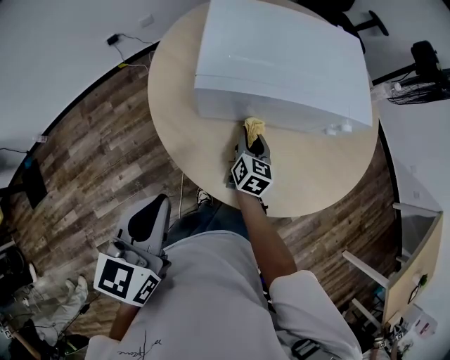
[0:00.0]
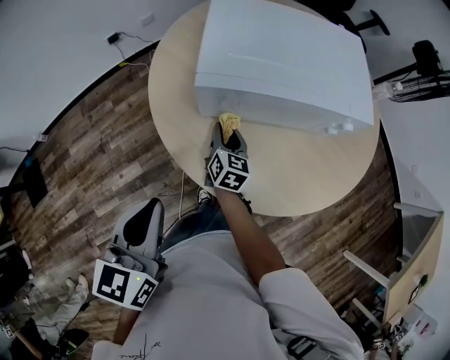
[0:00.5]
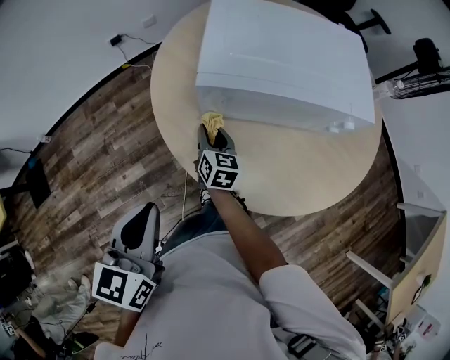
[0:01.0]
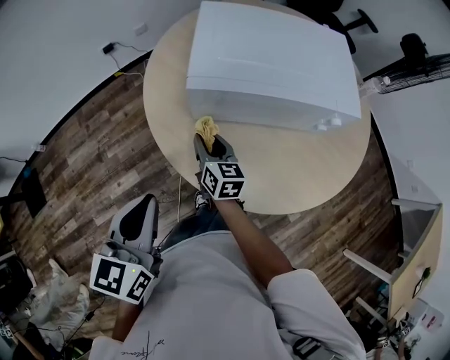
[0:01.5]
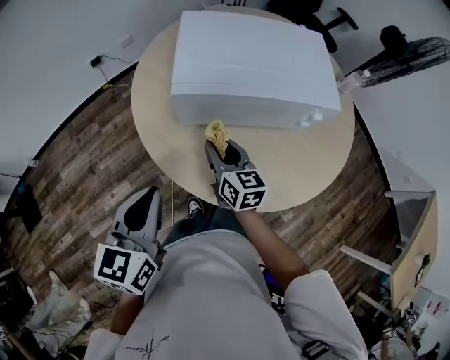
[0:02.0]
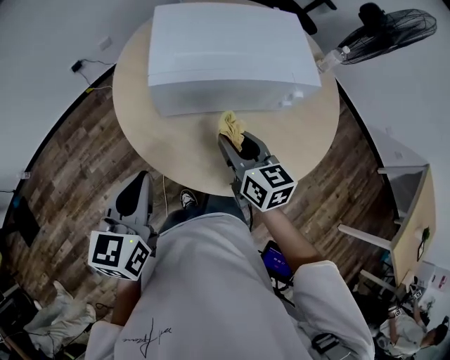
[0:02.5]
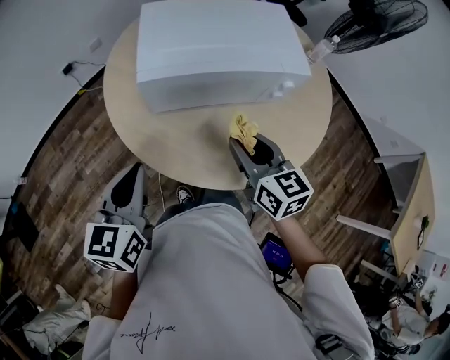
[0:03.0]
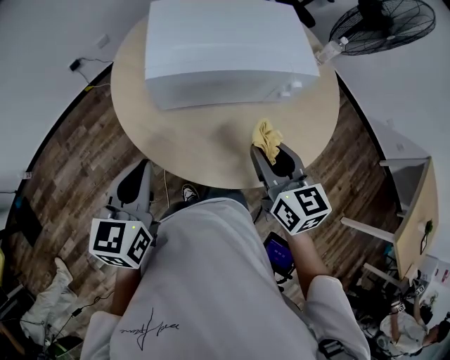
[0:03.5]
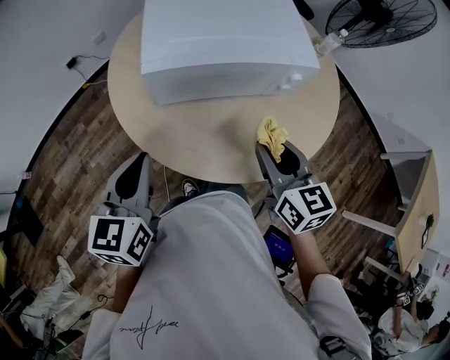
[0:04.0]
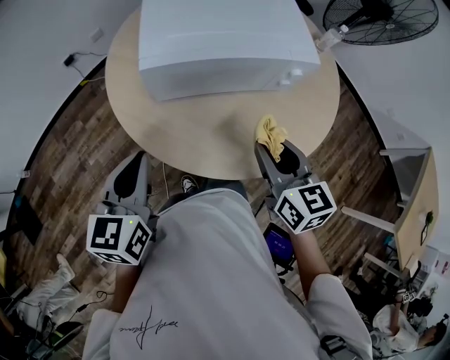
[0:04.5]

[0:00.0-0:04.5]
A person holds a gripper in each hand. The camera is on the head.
0:00.0 to 0:02.0: The right gripper travels upward, backward and to the left by approximately 15 cm, and changes its angle by roughly 20 degrees.
0:02.0 to 0:04.5: The right gripper travels to the right, backward and upward by approximately 20 cm.

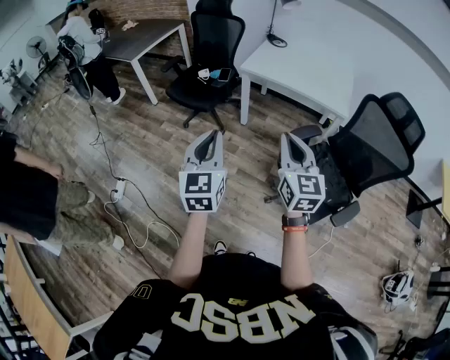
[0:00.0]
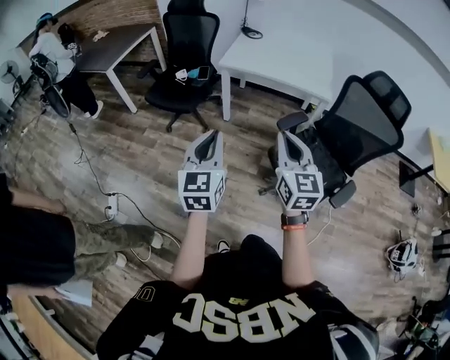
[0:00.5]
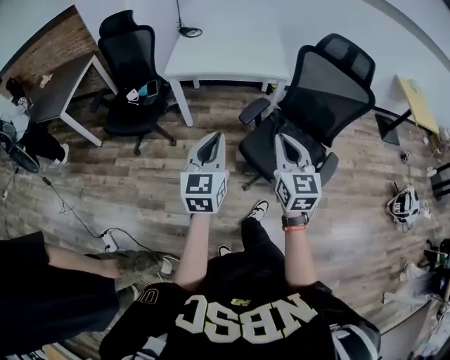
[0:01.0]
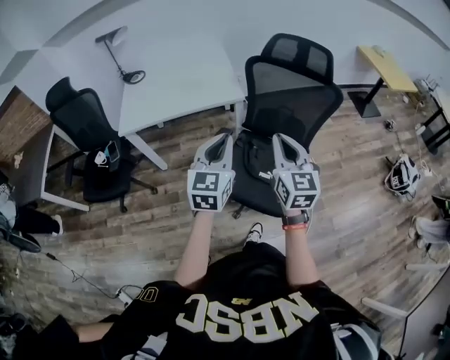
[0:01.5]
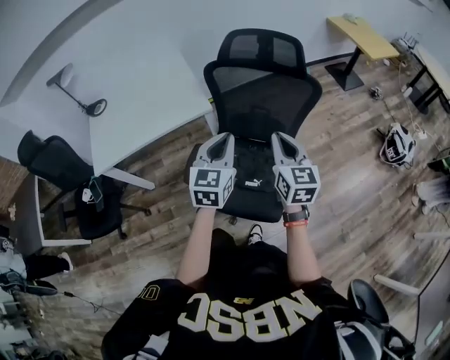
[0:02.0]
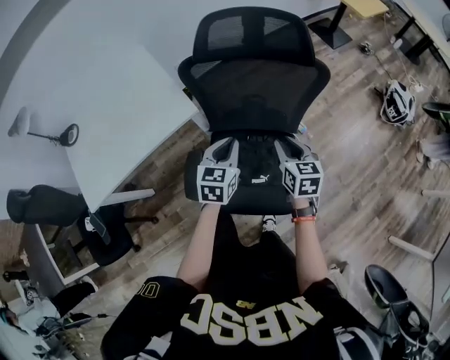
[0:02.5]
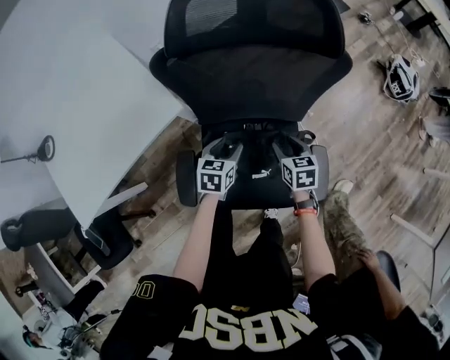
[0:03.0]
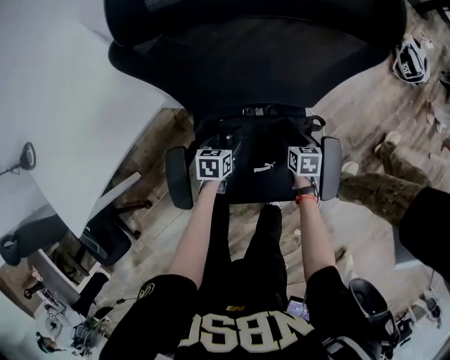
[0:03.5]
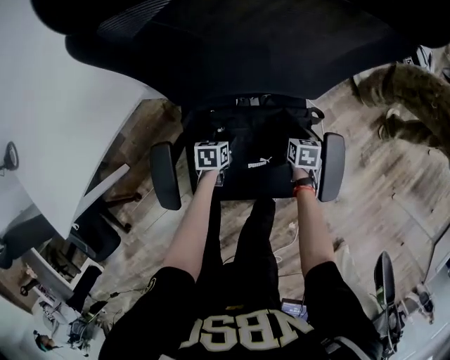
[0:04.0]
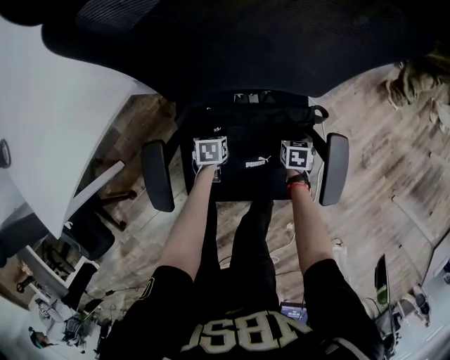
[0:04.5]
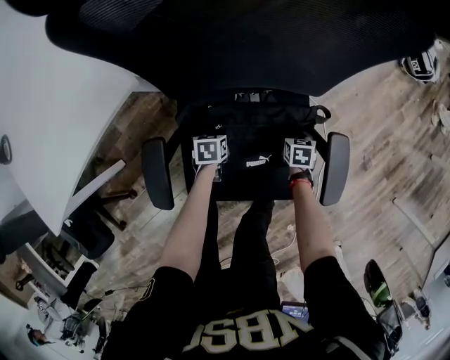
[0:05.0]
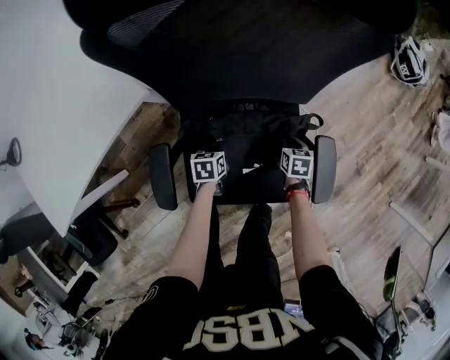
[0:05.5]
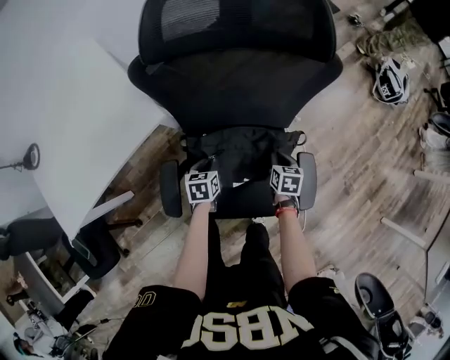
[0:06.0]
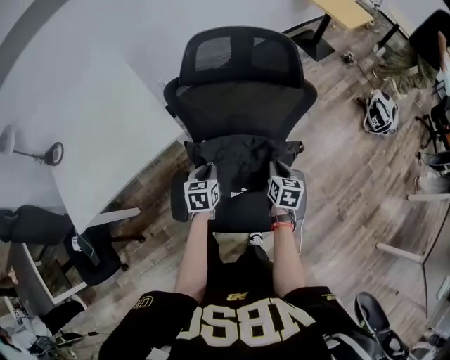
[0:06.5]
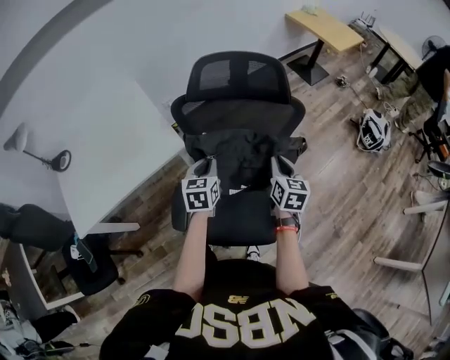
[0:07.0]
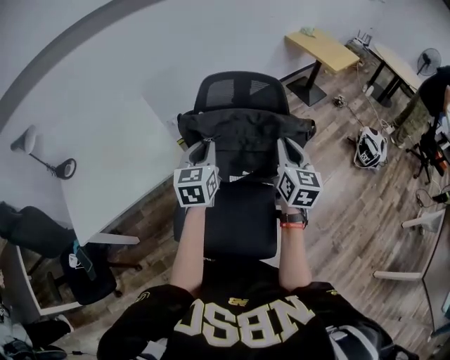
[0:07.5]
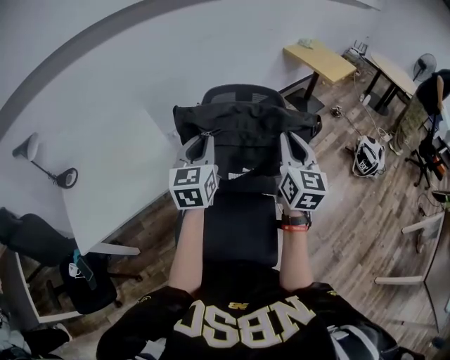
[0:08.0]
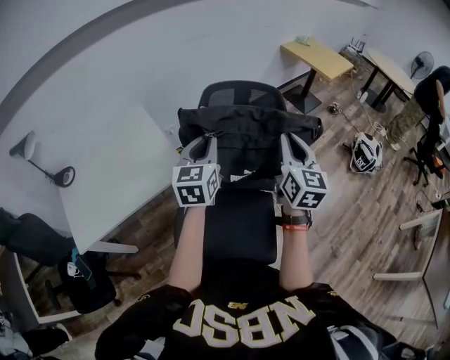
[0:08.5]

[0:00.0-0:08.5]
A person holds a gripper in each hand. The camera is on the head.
0:00.0 to 0:02.0: The two grippers travel together, some 50 cm. The right gripper changes its angle by about 50 degrees. Meanwhile the left gripper changes its angle by about 60 degrees.
0:02.0 to 0:04.0: The two grippers go about 60 cm downward. The right gripper angles its fingers downward, by about 60 degrees, and opens up, while the left gripper angles its fingers downward, by roughly 50 degrees, and opens.
0:04.0 to 0:06.5: The grippers both shift upward by roughly 35 cm. The right gripper changes its angle by about 30 degrees, and closes its fingers; the left gripper rotates about 30 degrees, and closes up.
0:06.5 to 0:08.5: The two grippers go some 35 cm upward. The right gripper points its fingers approximately 40 degrees further upward. Meanwhile the left gripper angles its fingers upward, by about 30 degrees.

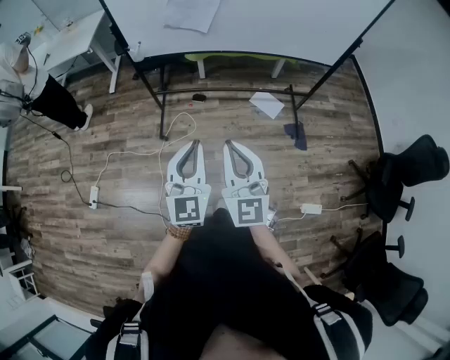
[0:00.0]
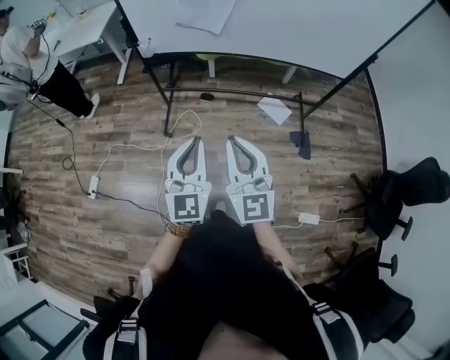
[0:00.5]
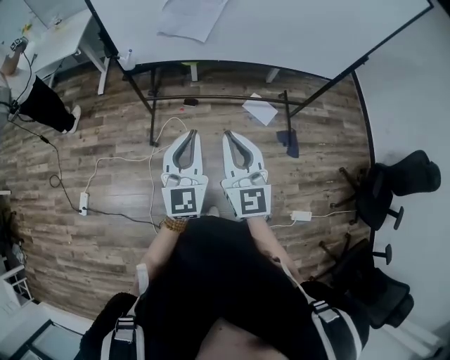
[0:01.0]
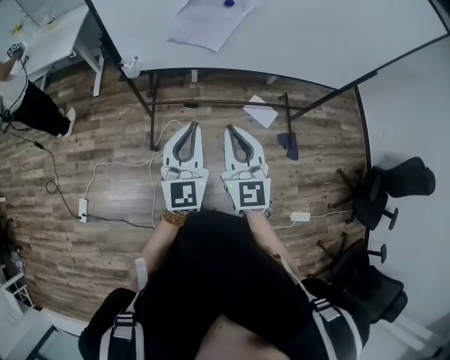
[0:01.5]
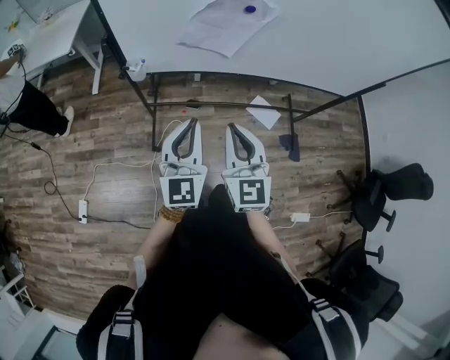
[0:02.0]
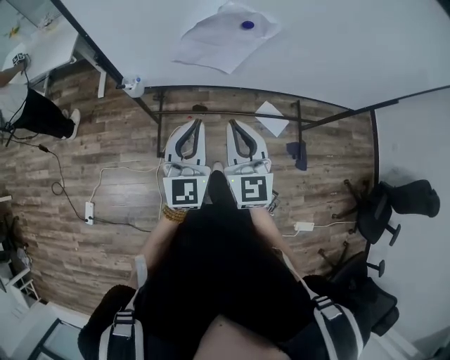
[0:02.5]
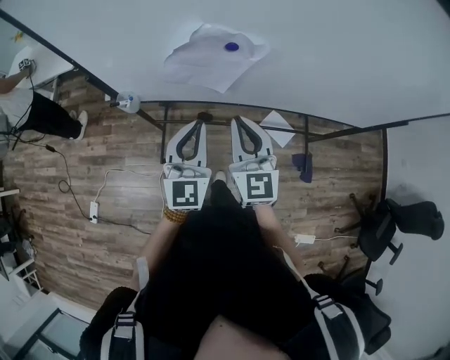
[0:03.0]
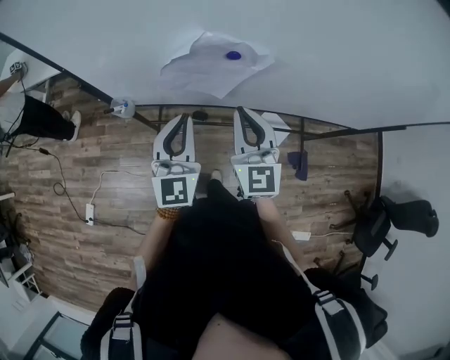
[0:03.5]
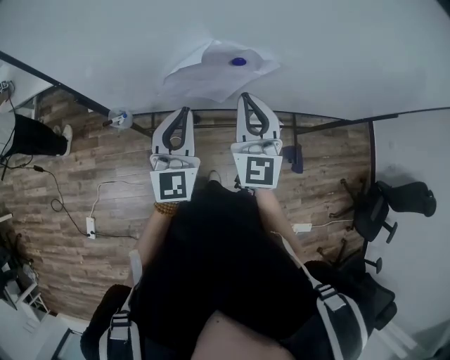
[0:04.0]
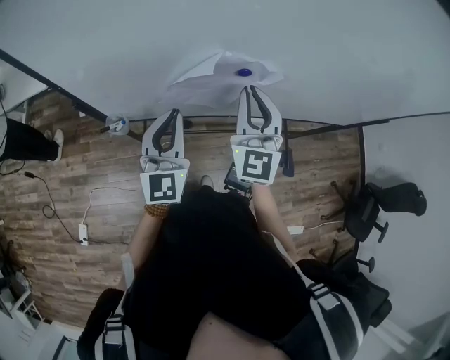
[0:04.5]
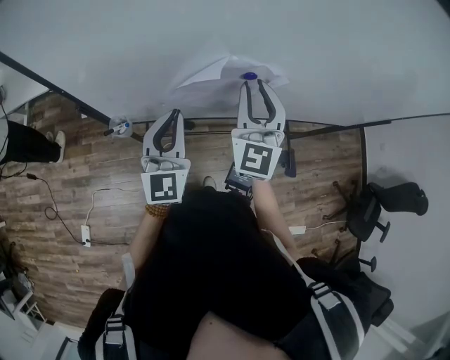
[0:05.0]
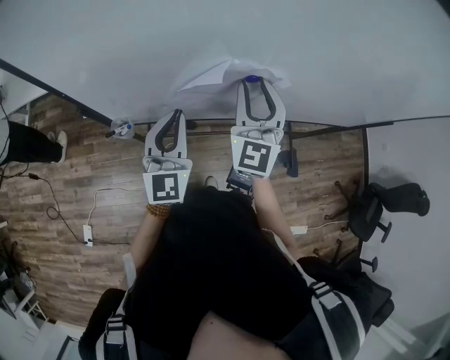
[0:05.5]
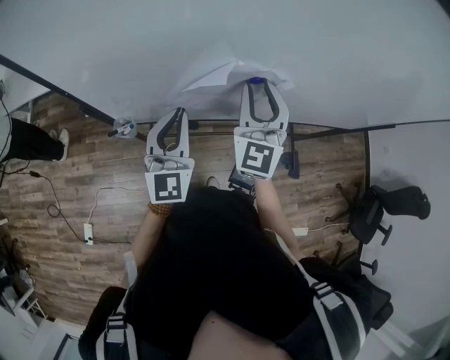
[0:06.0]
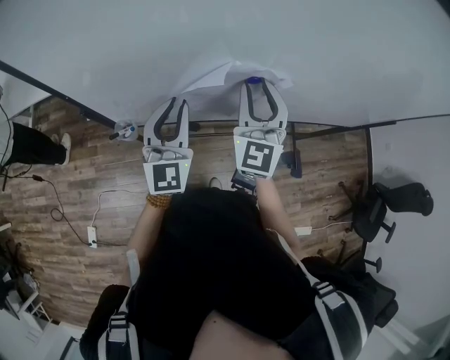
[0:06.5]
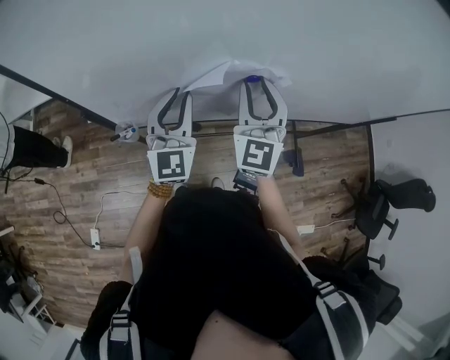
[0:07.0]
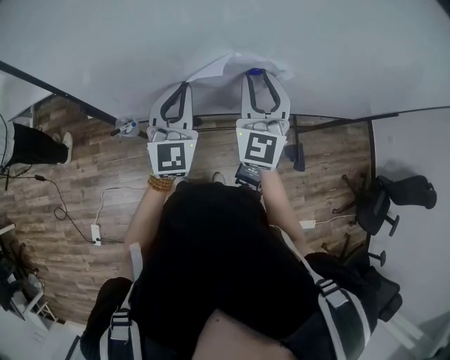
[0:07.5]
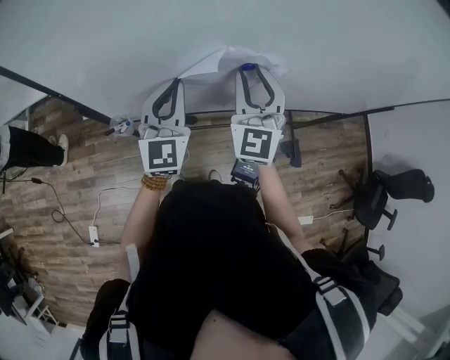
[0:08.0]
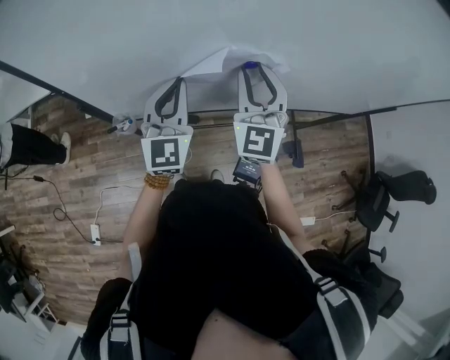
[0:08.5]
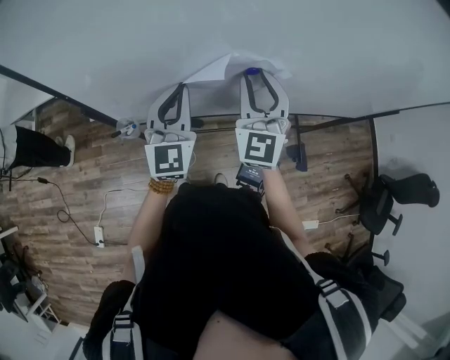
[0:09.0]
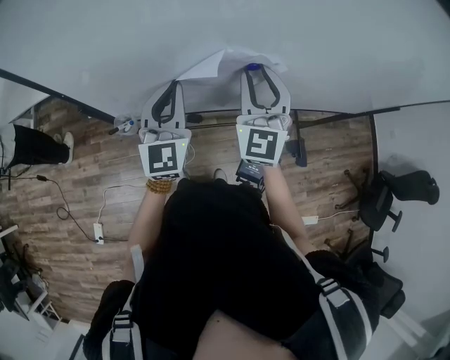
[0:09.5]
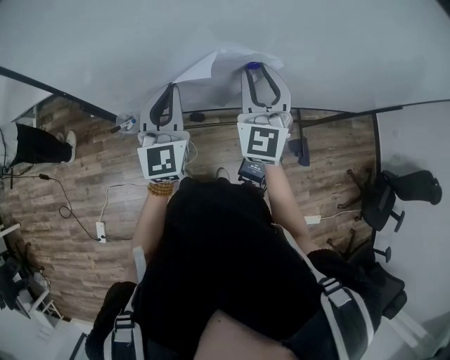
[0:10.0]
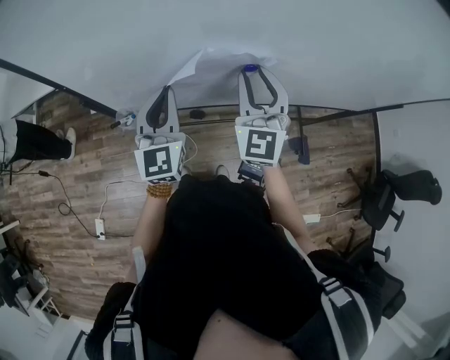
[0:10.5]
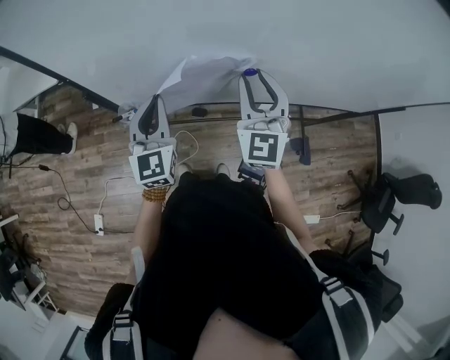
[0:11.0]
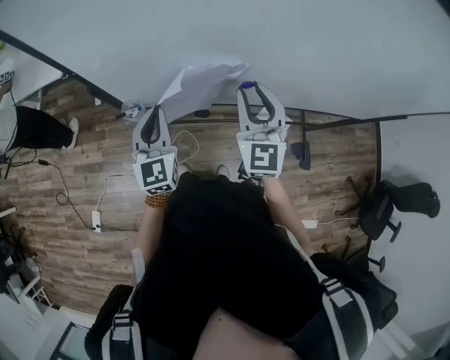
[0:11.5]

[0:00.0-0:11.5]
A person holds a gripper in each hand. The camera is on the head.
0:00.0 to 0:02.0: Both grippers travel together forward, approximately 30 cm.
0:02.0 to 0:04.0: Both grippers move forward, roughly 25 cm.
0:04.0 to 0:06.0: The left gripper changes place by roughly 5 cm, while the right gripper heads forward, covering approximately 5 cm, and opens its fingers.
0:06.0 to 0:09.5: The grippers make only small movements.
0:09.5 to 0:11.5: The left gripper travels to the left, downward and backward by about 10 cm, while the right gripper changes place by approximately 5 cm.

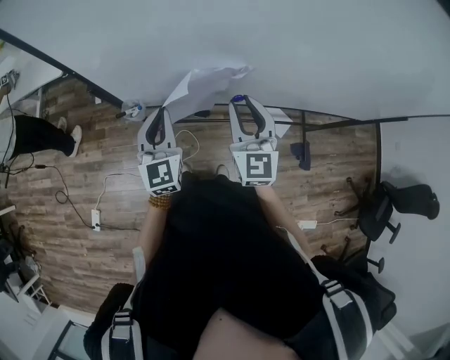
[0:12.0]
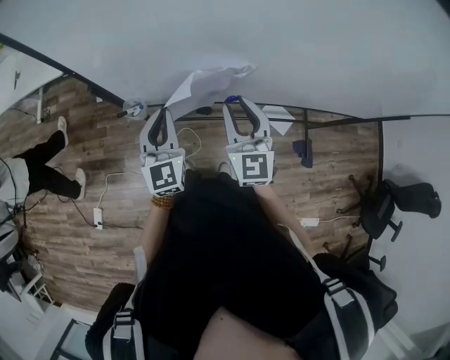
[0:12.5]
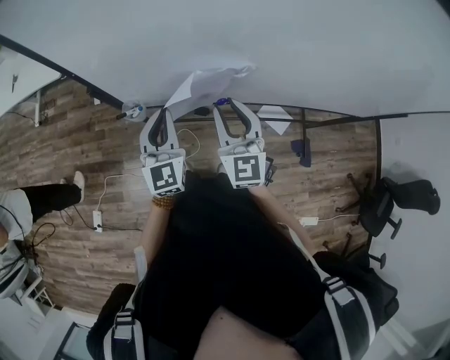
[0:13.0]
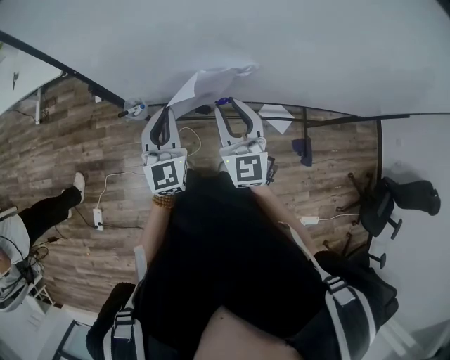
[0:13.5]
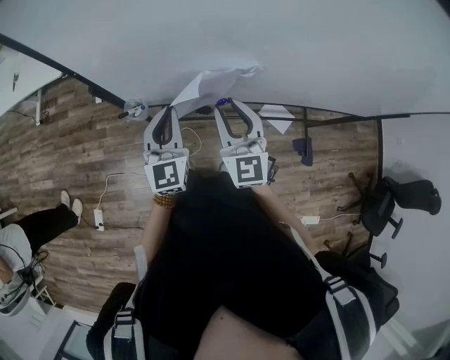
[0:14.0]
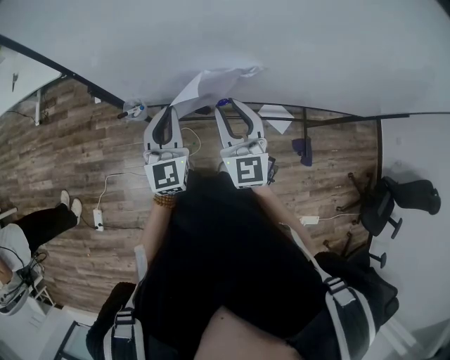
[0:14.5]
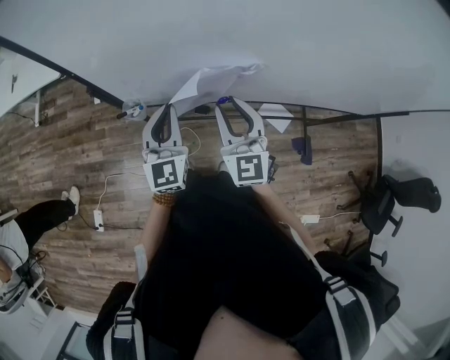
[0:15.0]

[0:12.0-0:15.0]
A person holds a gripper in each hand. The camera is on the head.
0:12.0 to 0:13.5: The grippers stay close to where they were, moving slightly.
0:13.5 to 0:15.0: The two grippers keep their place.
